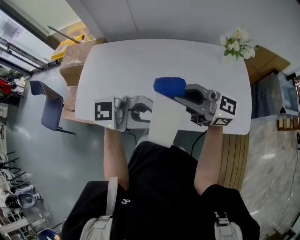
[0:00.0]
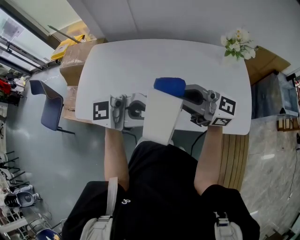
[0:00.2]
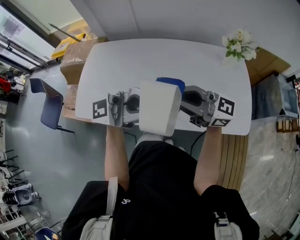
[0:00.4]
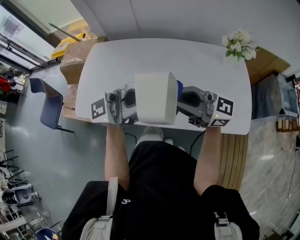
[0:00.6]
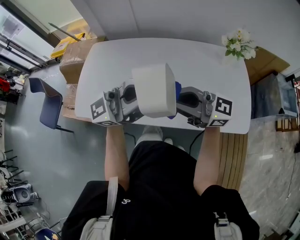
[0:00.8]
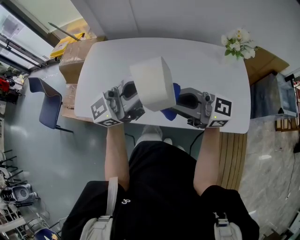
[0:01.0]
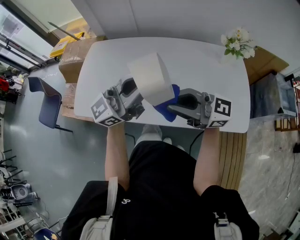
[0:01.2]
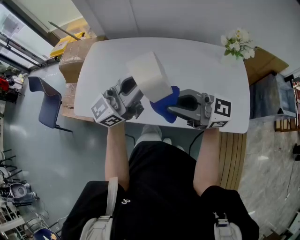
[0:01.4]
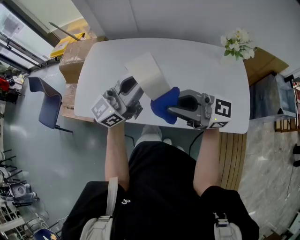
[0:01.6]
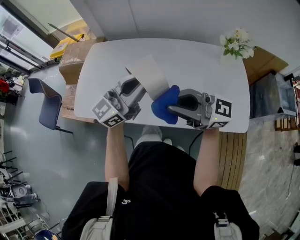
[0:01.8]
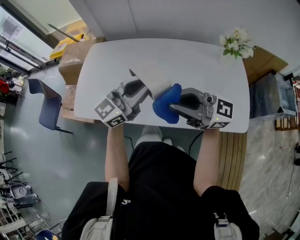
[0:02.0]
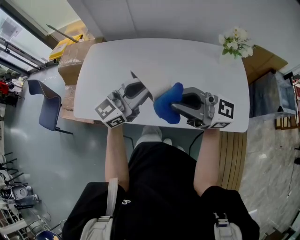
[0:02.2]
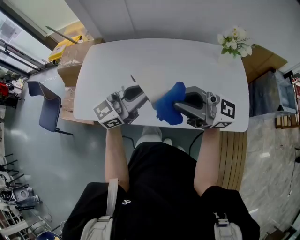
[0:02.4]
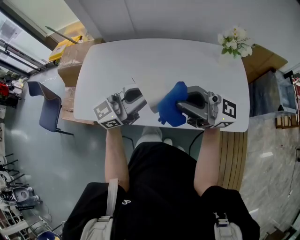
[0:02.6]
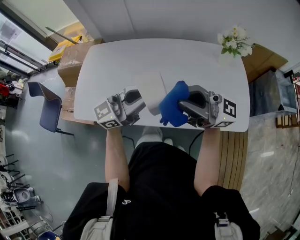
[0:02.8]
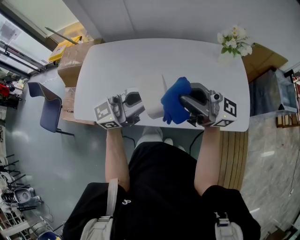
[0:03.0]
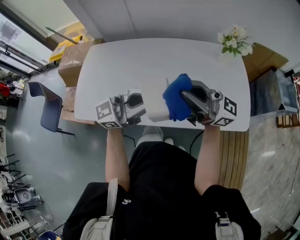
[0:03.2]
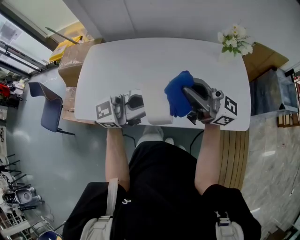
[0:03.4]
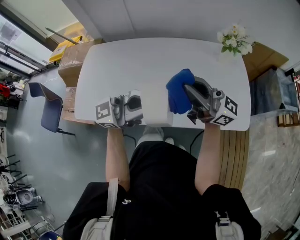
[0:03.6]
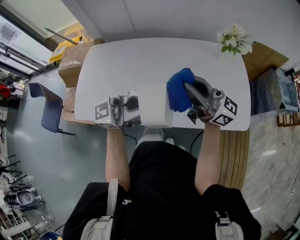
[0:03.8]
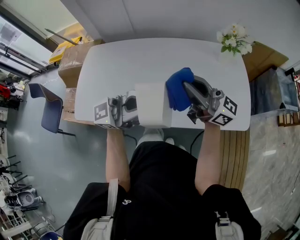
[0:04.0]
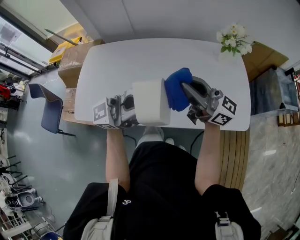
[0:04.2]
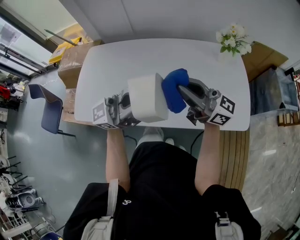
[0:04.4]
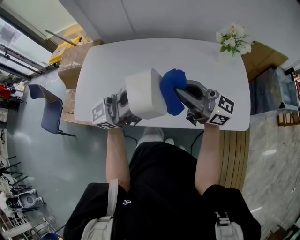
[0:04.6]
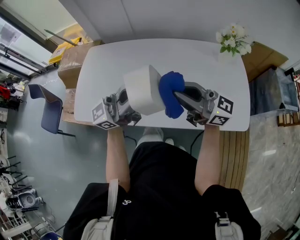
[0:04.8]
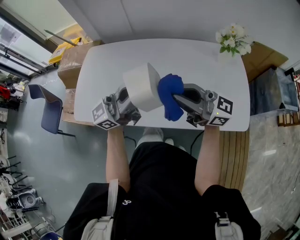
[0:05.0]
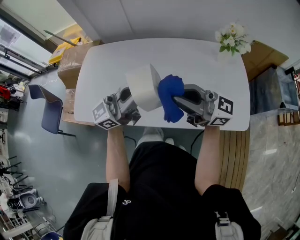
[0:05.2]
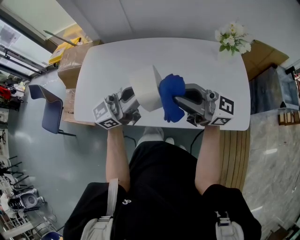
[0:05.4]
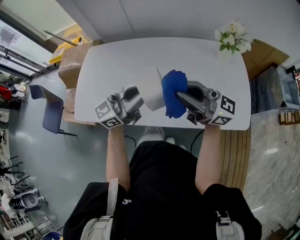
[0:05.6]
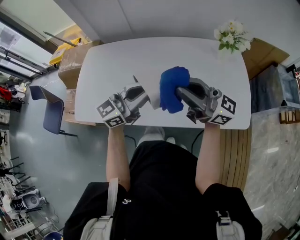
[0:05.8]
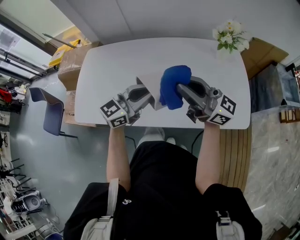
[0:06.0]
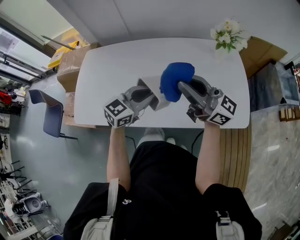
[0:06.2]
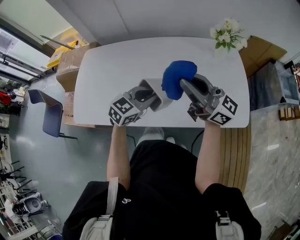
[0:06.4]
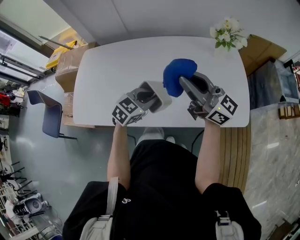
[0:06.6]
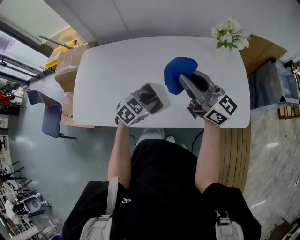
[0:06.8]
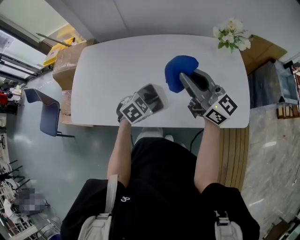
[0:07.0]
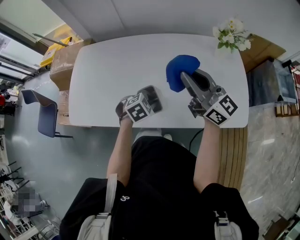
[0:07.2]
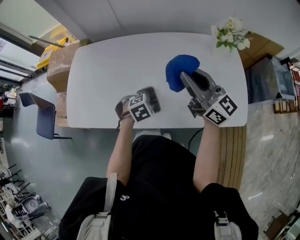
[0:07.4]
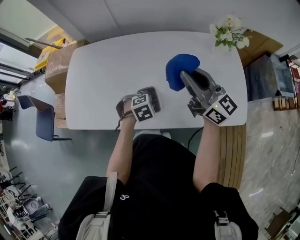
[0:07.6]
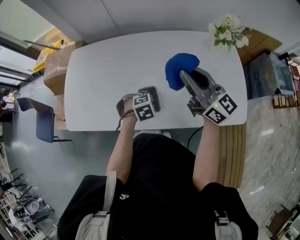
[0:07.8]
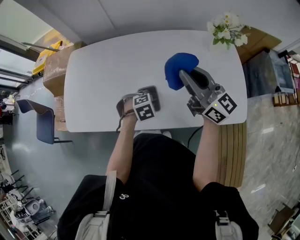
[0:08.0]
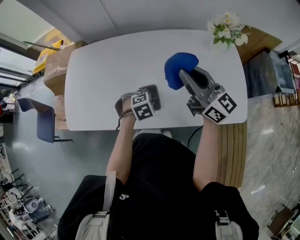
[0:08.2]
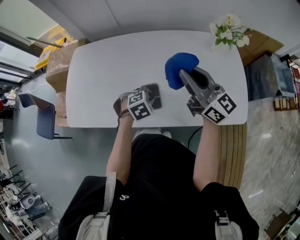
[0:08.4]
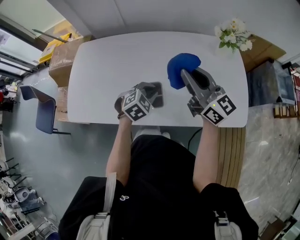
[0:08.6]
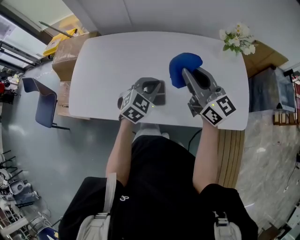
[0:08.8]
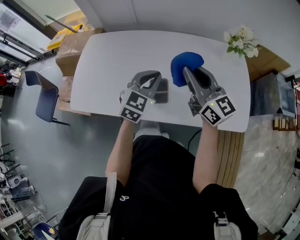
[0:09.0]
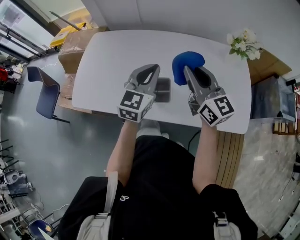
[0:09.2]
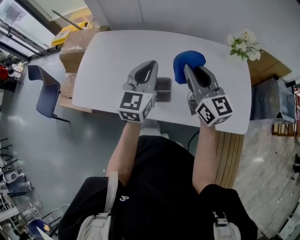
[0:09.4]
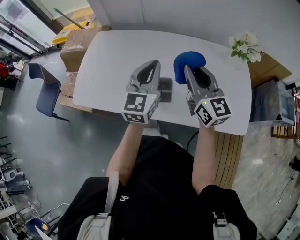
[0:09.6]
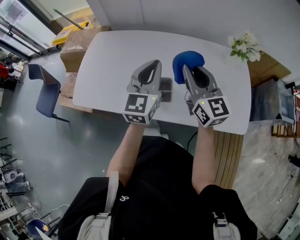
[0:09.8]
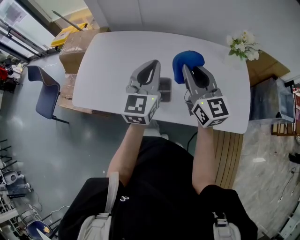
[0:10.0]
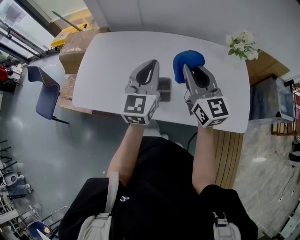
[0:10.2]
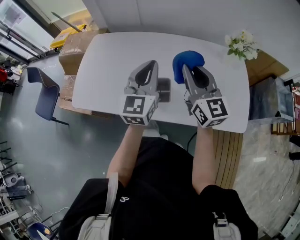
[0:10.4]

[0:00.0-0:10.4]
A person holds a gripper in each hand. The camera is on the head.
0.0 to 1.4 s: The left gripper moves approximately 15 cm, and rotates about 50 degrees.
1.4 to 3.0 s: The left gripper heads downward, covering approximately 5 cm, while the right gripper ends up about 5 cm from where it was.
3.0 to 4.4 s: The right gripper ends up approximately 5 cm from where it was.
4.4 to 6.0 s: The left gripper travels downward by roughly 10 cm, and angles its fingers downward, by about 30 degrees.
6.0 to 7.4 s: The right gripper heads forward, covering approximately 5 cm, and turns by approximately 20 degrees. The left gripper goes approximately 20 cm downward, and angles its fingers downward, by roughly 60 degrees.
7.4 to 9.0 s: The left gripper travels upward by about 20 cm, and points its fingers roughly 50 degrees further upward.
9.0 to 10.4 s: The left gripper goes some 10 cm upward, and turns by roughly 30 degrees.

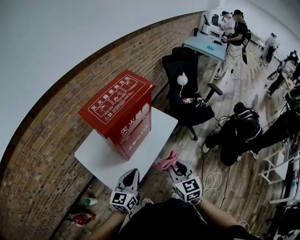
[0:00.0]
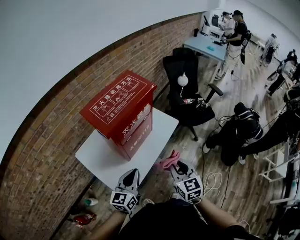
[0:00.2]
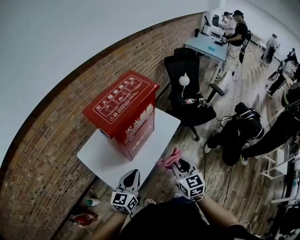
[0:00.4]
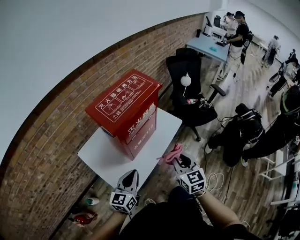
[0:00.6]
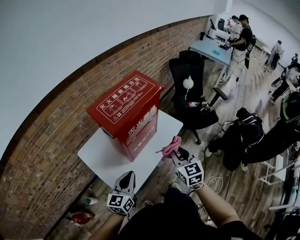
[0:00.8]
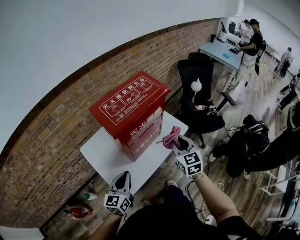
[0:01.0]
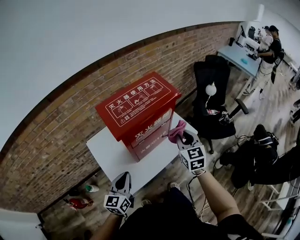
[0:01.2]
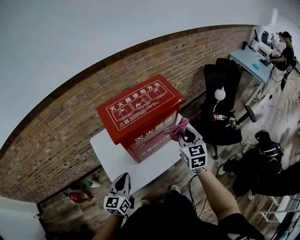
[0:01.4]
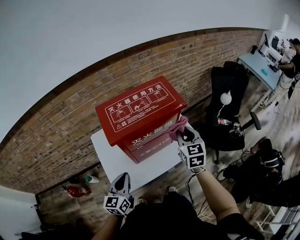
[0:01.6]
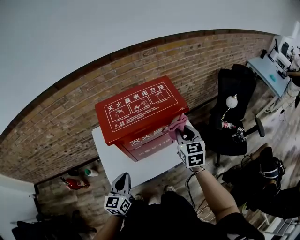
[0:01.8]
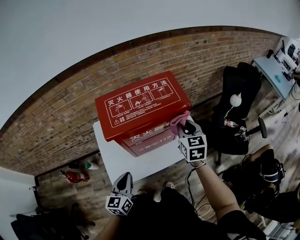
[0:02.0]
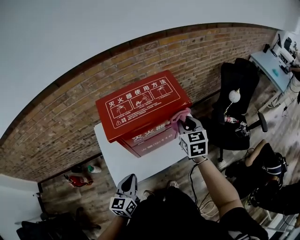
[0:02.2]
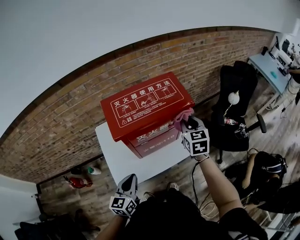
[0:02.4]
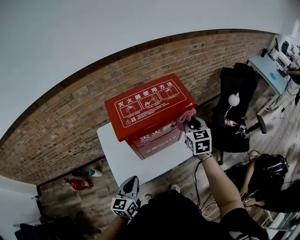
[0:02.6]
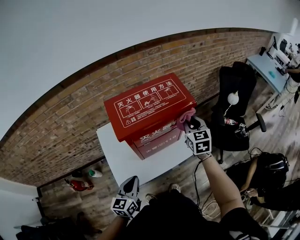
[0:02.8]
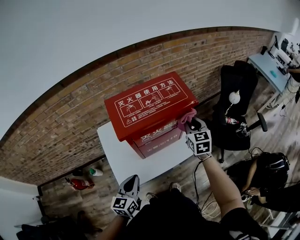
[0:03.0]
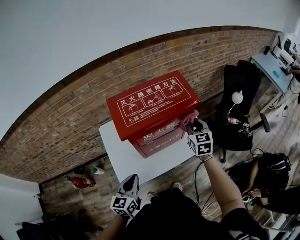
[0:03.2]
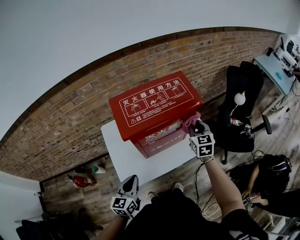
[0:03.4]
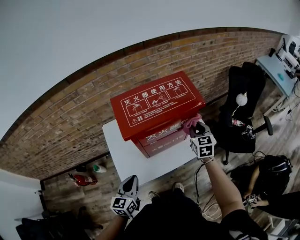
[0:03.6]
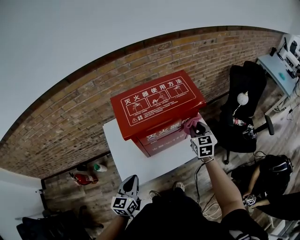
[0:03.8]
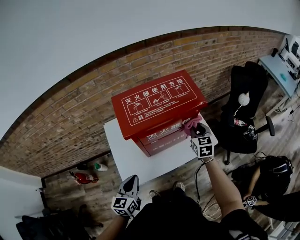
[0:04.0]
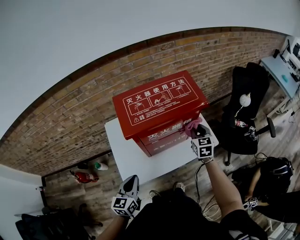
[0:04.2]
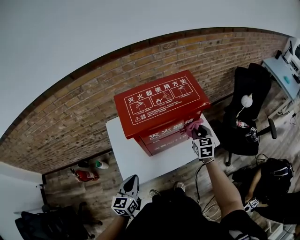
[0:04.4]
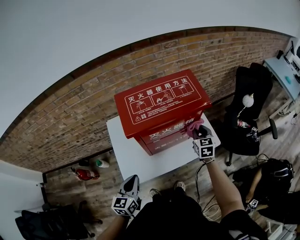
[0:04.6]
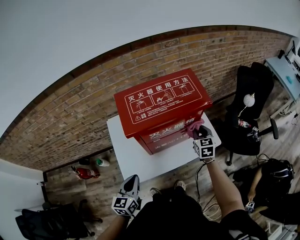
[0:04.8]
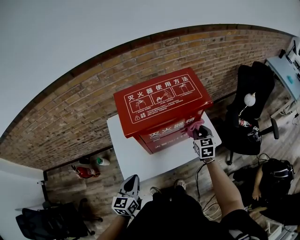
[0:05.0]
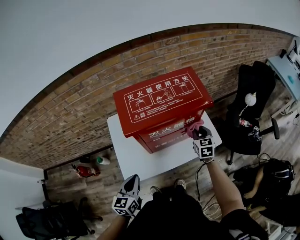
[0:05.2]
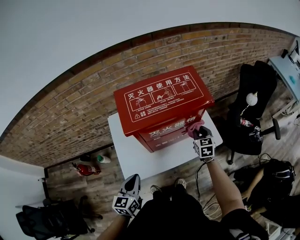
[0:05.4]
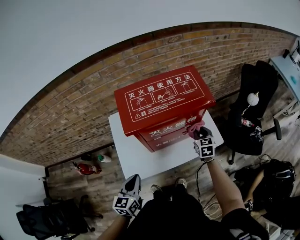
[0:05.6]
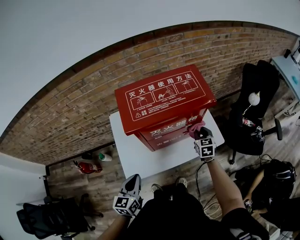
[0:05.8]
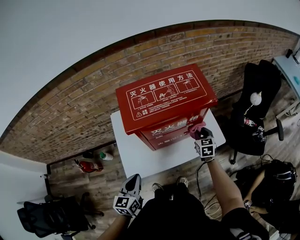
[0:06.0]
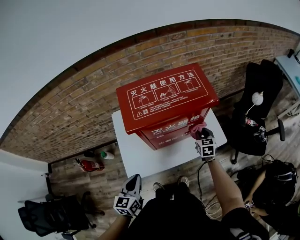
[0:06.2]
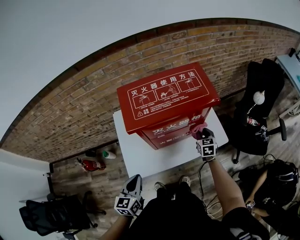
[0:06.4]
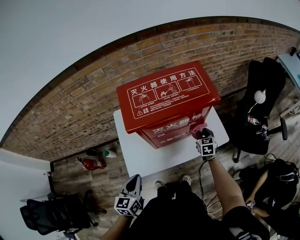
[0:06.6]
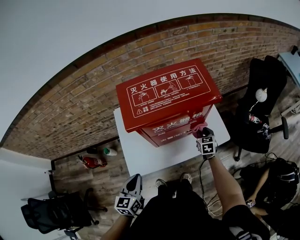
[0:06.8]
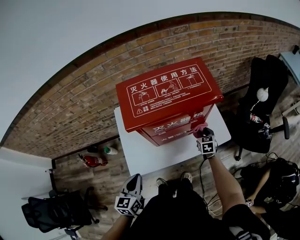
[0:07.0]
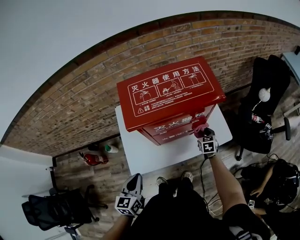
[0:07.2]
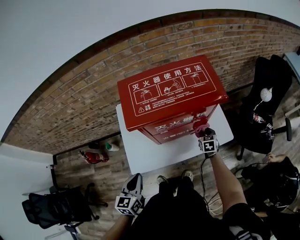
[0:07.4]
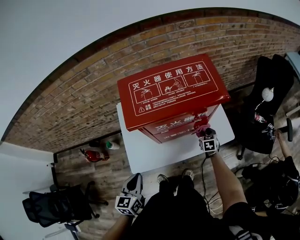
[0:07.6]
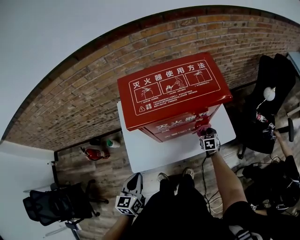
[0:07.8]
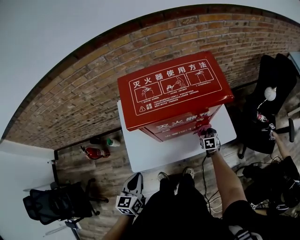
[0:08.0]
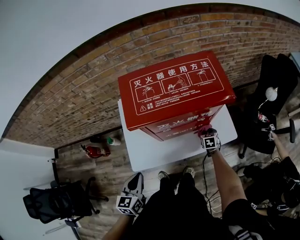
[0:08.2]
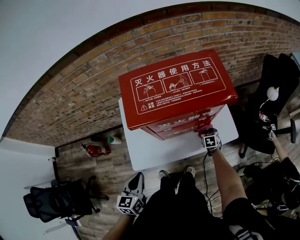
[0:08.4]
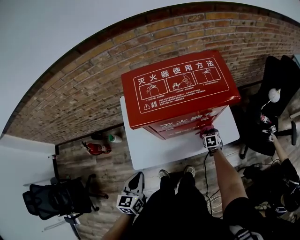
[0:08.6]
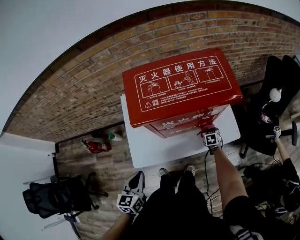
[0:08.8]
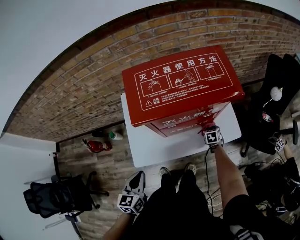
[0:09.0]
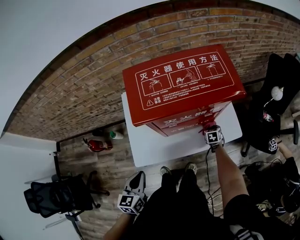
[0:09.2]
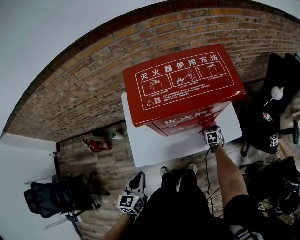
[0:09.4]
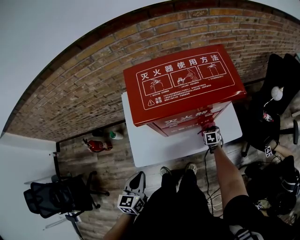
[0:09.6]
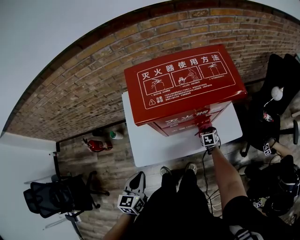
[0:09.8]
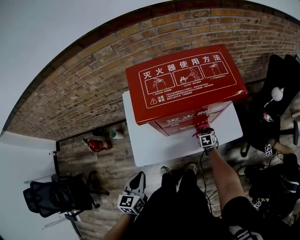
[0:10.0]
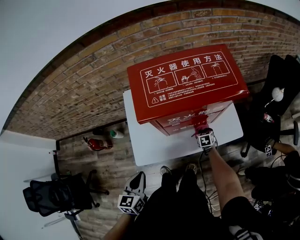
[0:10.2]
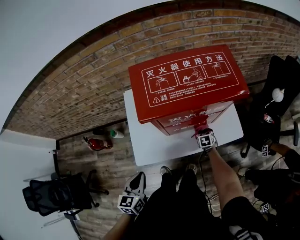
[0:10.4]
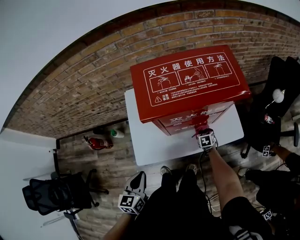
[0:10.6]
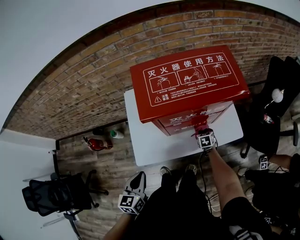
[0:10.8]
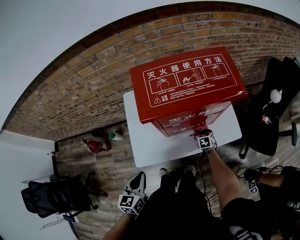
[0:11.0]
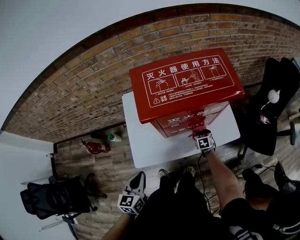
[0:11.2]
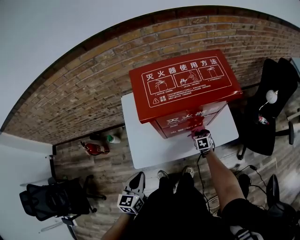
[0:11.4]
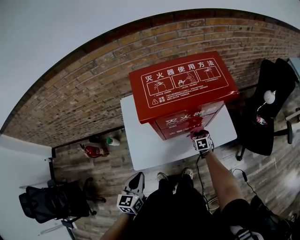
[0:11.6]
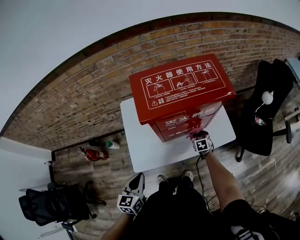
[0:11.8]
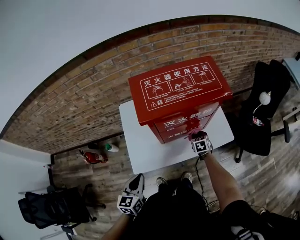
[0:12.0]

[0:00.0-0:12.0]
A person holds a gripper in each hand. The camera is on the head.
0.0 to 1.6 s: The right gripper moves approximately 30 cm, while the left gripper shifts by some 5 cm, and rotates about 30 degrees.
1.6 to 3.0 s: The right gripper goes roughly 5 cm forward.
3.0 to 4.4 s: The right gripper goes some 10 cm downward.
4.4 to 6.0 s: The right gripper shifts some 10 cm downward.
6.0 to 7.6 s: The right gripper goes some 10 cm downward.
7.6 to 9.0 s: The right gripper travels downward by approximately 10 cm.
9.0 to 10.4 s: The right gripper travels to the left by about 5 cm.
10.4 to 12.0 s: The right gripper goes about 10 cm upward.

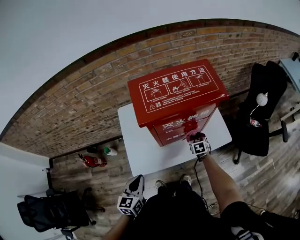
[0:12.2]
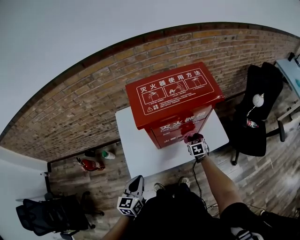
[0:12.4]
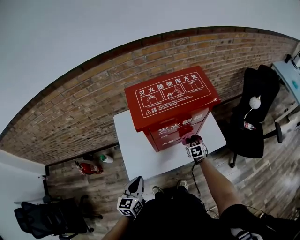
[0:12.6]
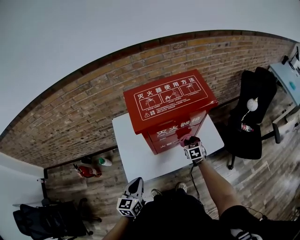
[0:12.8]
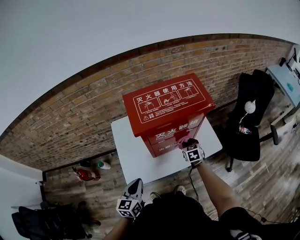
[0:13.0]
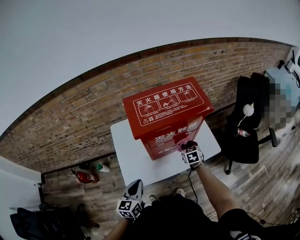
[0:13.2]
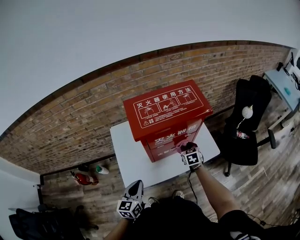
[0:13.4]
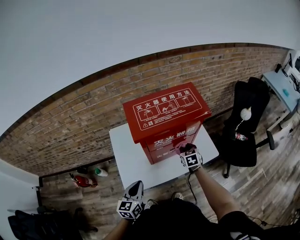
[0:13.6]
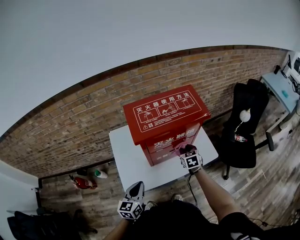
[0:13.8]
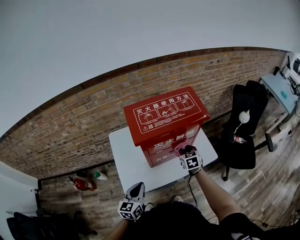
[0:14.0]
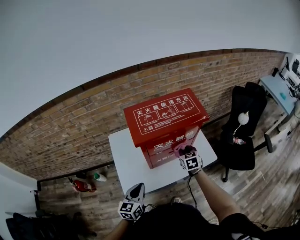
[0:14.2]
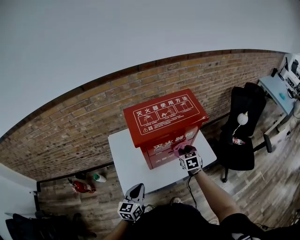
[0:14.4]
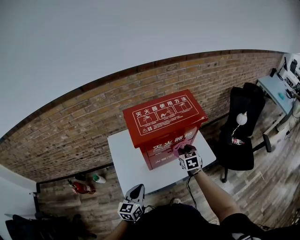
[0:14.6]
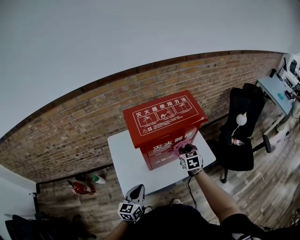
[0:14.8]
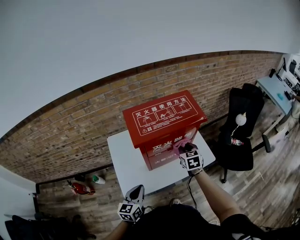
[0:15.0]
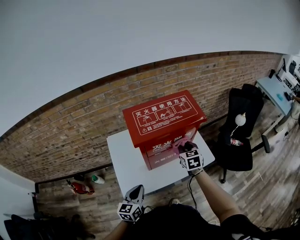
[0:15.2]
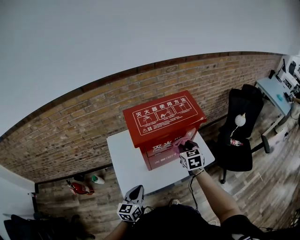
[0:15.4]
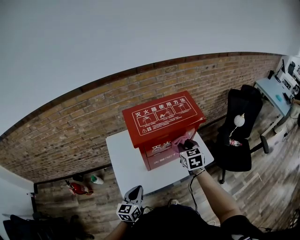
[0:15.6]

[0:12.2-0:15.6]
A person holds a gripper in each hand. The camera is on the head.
12.2 to 13.8 s: The right gripper goes about 10 cm upward. Meanwhile the left gripper shifts by roughly 5 cm.
13.8 to 15.6 s: The right gripper shifts some 15 cm upward.
